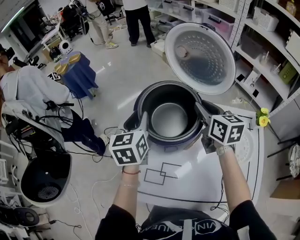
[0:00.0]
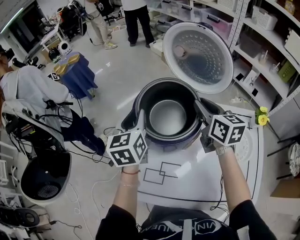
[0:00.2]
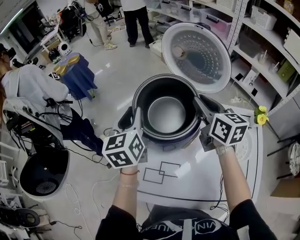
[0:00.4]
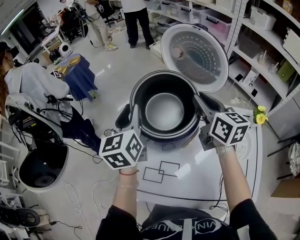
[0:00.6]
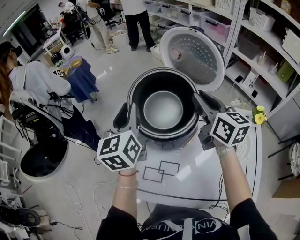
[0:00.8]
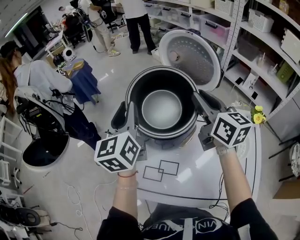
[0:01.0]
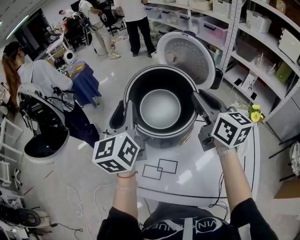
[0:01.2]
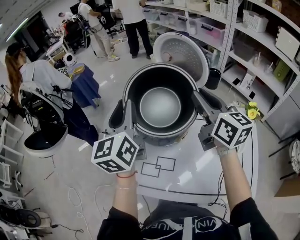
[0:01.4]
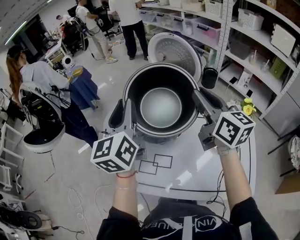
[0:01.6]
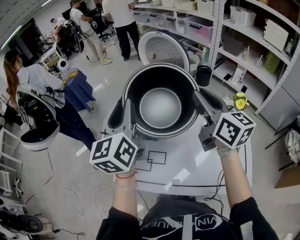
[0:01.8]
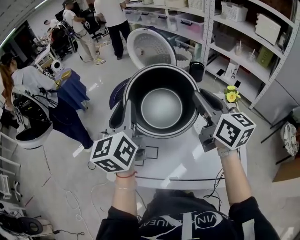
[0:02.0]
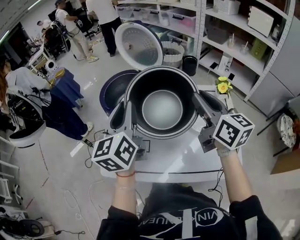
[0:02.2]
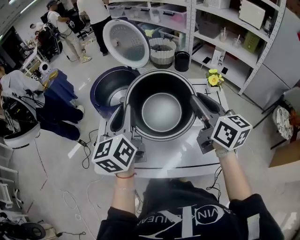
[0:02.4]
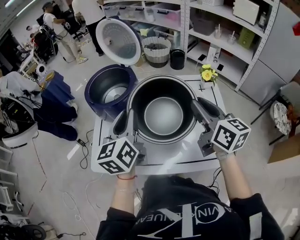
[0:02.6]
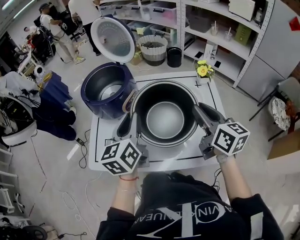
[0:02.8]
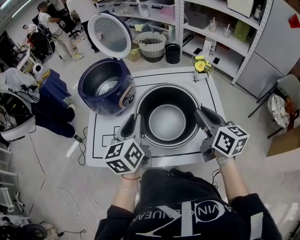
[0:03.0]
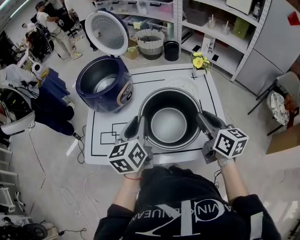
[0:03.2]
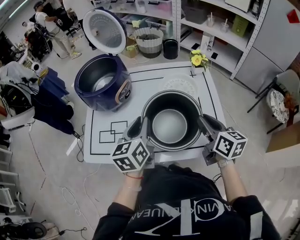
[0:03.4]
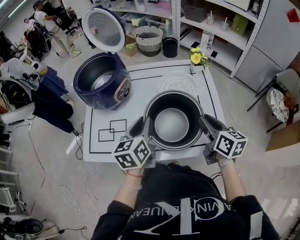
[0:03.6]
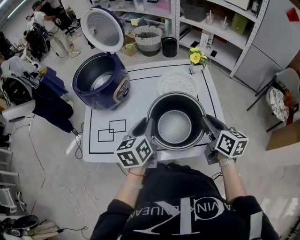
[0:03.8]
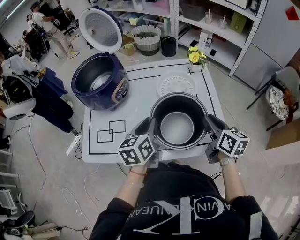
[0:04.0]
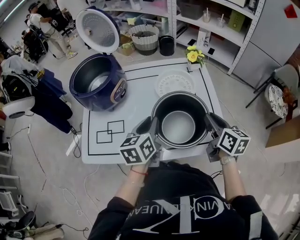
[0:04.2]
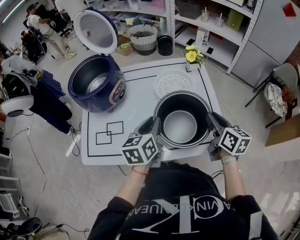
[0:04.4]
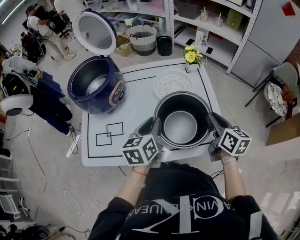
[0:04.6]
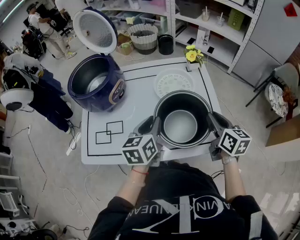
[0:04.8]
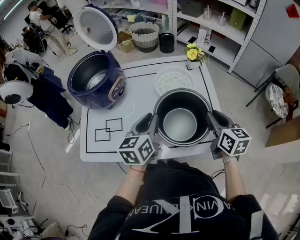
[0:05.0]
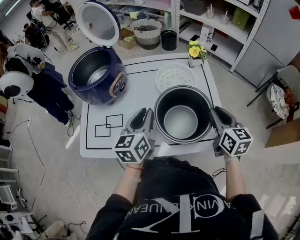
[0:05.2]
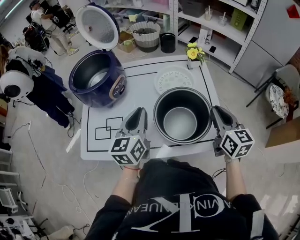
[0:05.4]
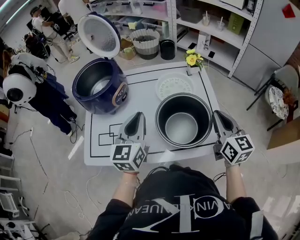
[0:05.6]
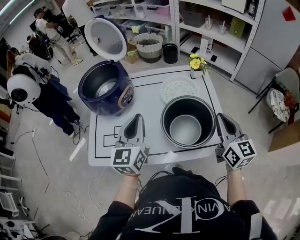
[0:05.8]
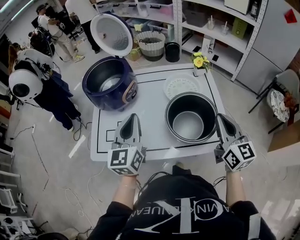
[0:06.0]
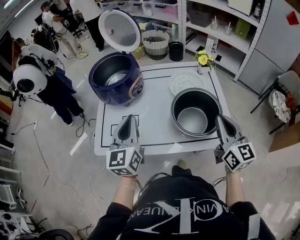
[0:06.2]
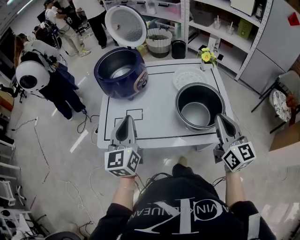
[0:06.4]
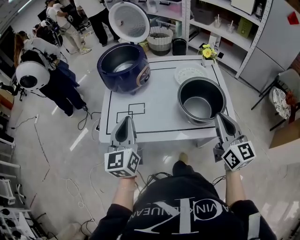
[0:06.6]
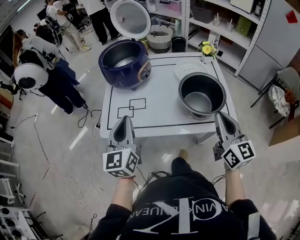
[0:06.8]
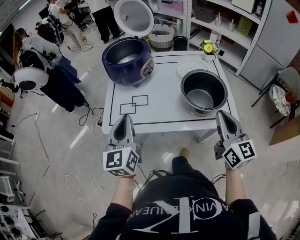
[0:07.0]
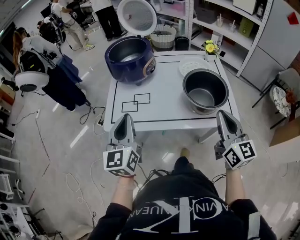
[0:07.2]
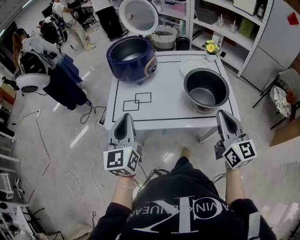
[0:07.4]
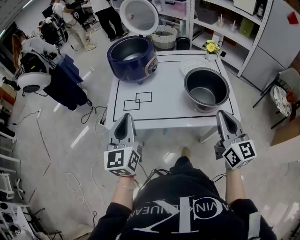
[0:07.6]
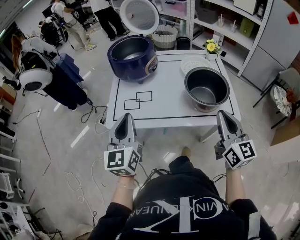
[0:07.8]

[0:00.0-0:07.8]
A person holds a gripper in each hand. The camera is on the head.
0:00.0 to 0:01.6: The grippers both shift upward and backward by approximately 20 cm. The left gripper rotates roughly 20 degrees, while the right gripper changes its angle by roughly 20 degrees.
0:01.6 to 0:03.2: The left gripper moves to the right, downward and backward, roughly 35 cm, and changes its angle by approximately 30 degrees, while the right gripper heads backward, to the right and downward, covering some 40 cm, and turns by roughly 20 degrees.
0:03.2 to 0:04.6: The grippers both shift to the right and downward by roughly 10 cm.
0:04.6 to 0:06.2: The right gripper is displaced upward, backward and to the left by approximately 15 cm, and swivels roughly 30 degrees. The left gripper shifts some 20 cm to the left, upward and backward, and rotates approximately 30 degrees.
0:06.2 to 0:07.8: Both grippers move backward and to the left, roughly 15 cm.

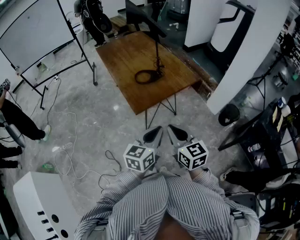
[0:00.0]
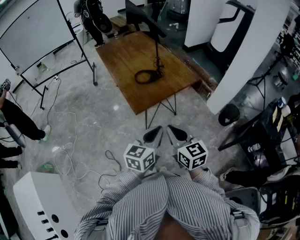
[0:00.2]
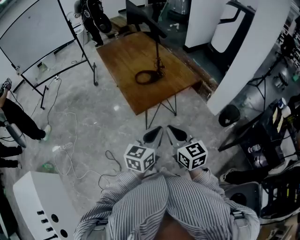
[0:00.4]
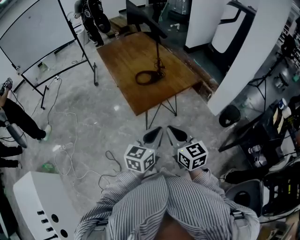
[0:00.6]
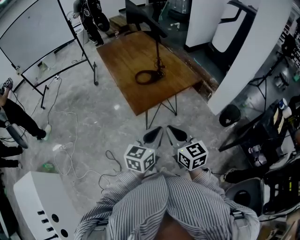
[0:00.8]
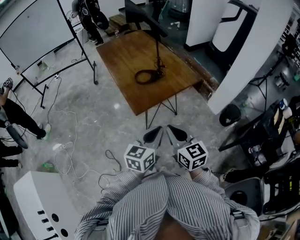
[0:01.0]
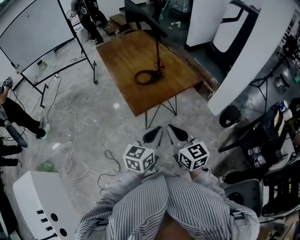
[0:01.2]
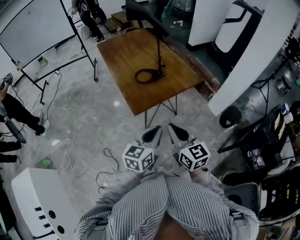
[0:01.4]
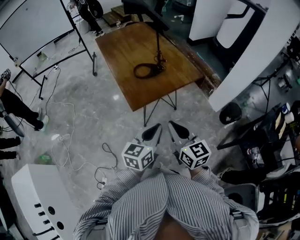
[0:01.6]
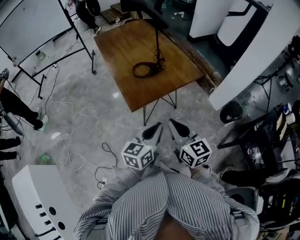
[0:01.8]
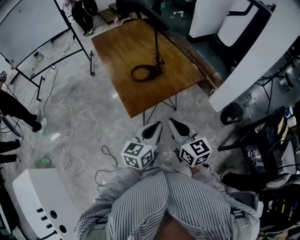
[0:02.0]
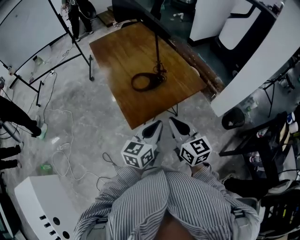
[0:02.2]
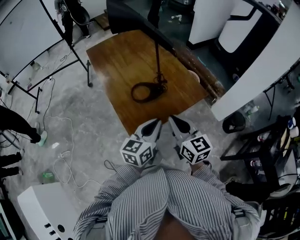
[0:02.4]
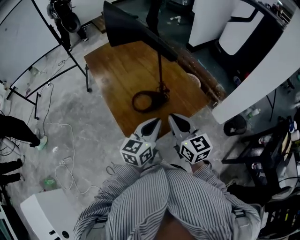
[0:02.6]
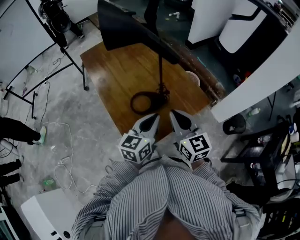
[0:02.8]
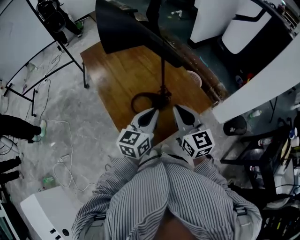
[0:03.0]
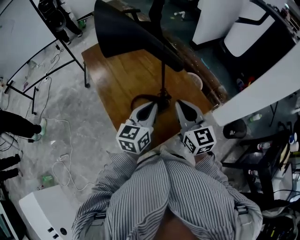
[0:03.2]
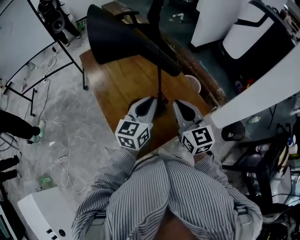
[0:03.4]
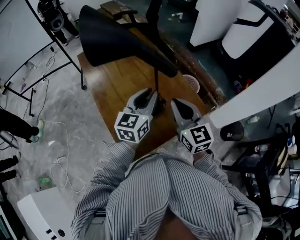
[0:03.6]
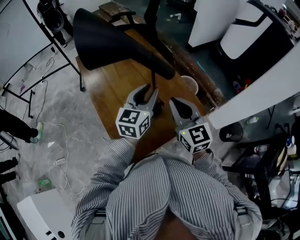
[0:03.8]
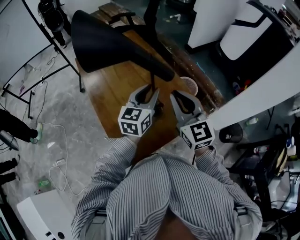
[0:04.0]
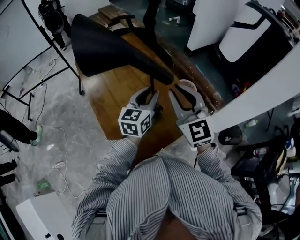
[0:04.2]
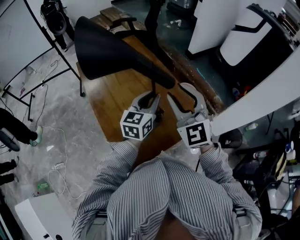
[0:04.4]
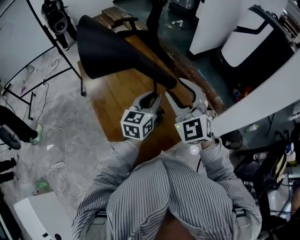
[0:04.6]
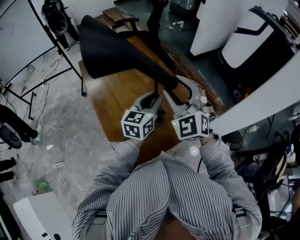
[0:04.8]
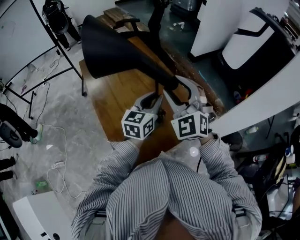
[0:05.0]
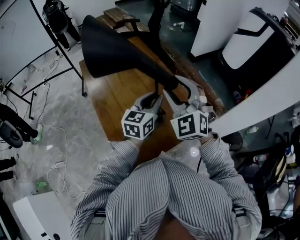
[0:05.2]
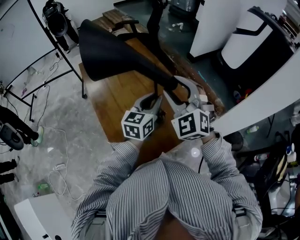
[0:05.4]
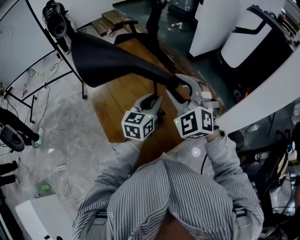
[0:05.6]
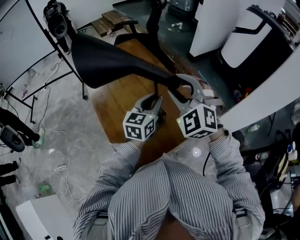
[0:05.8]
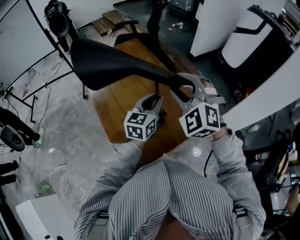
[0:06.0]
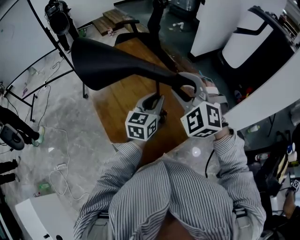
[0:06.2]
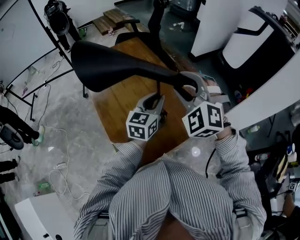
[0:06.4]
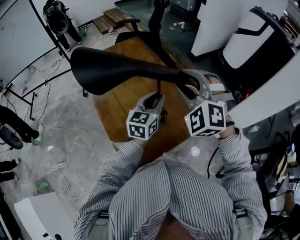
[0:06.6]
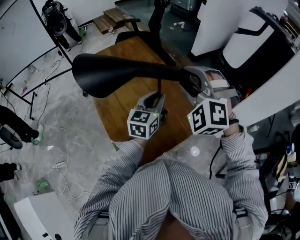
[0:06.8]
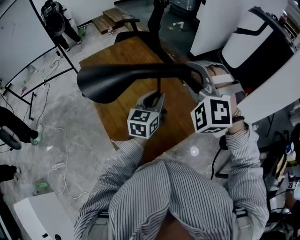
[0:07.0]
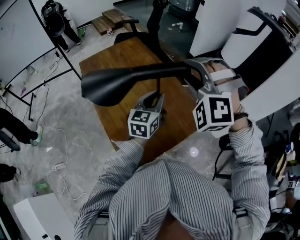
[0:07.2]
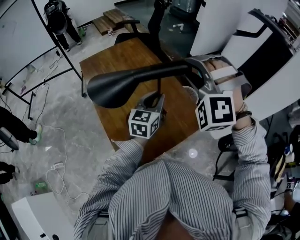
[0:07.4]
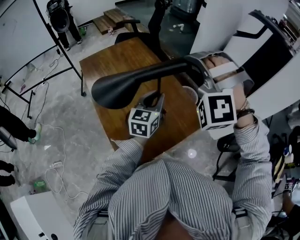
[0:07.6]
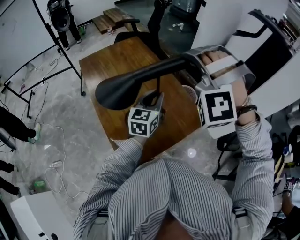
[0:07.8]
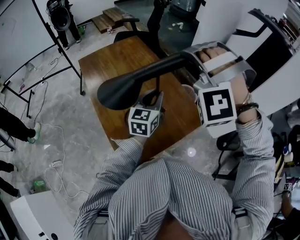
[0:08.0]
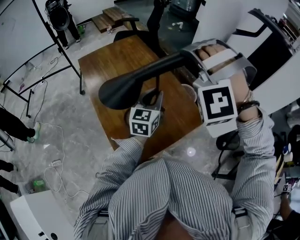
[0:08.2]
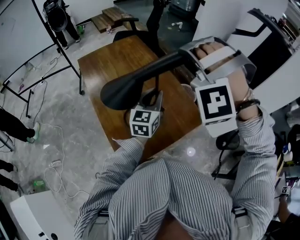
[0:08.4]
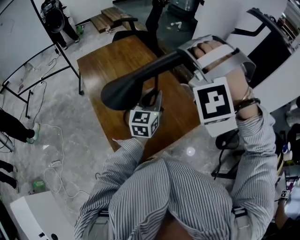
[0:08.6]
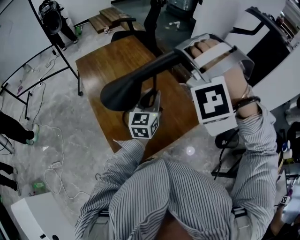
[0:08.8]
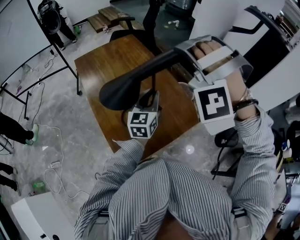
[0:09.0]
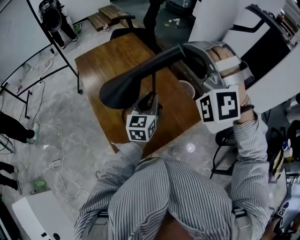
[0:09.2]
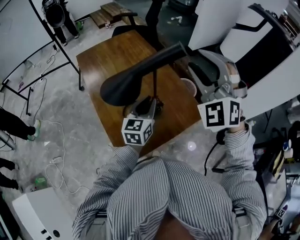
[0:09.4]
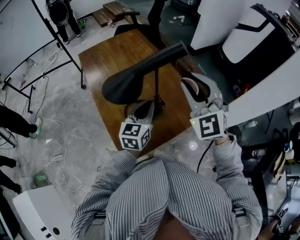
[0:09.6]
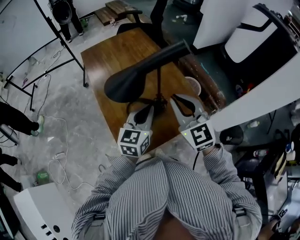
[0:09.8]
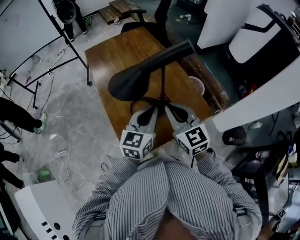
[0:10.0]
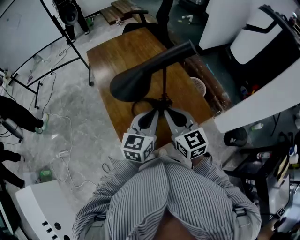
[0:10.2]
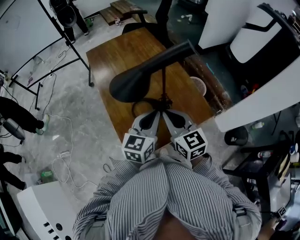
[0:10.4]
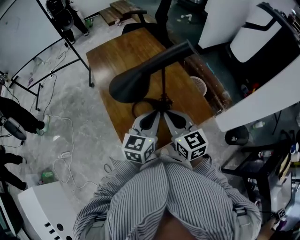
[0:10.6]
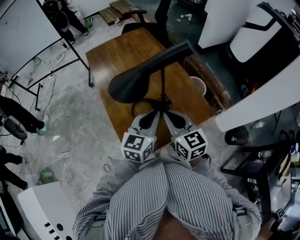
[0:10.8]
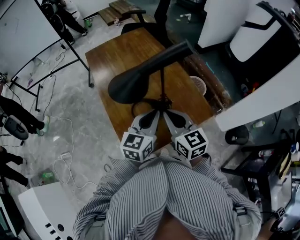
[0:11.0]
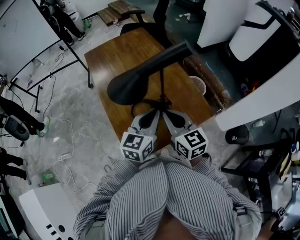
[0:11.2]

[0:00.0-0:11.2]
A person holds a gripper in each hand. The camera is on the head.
0:00.0 to 0:01.6: The grippers stay close to where they were, moving slightly.
0:01.6 to 0:03.2: The two grippers go some 40 cm forward.
0:03.2 to 0:04.8: The right gripper is displaced forward and upward by about 10 cm, twists roughly 50 degrees counterclockwise, seen from behind, and opens its fingers, while the left gripper is displaced forward by approximately 10 cm.
0:04.8 to 0:06.4: The right gripper swivels about 20 degrees.
0:06.4 to 0:08.0: The right gripper is displaced upward by roughly 5 cm, and twists approximately 40 degrees counterclockwise, seen from behind.
0:08.0 to 0:09.6: The left gripper shifts roughly 5 cm backward, while the right gripper moves downward, about 5 cm, and rotates around the line of its fingers by some 60 degrees, clockwise from behind.
0:09.6 to 0:11.2: The right gripper travels downward and to the left by about 15 cm, rolls clockwise, seen from behind, by approximately 50 degrees, and closes its fingers.

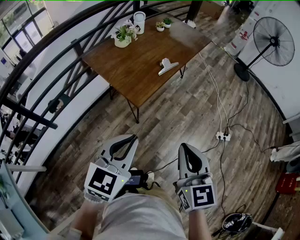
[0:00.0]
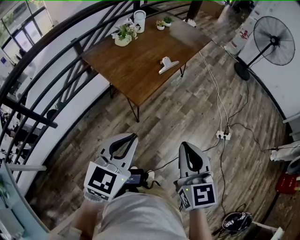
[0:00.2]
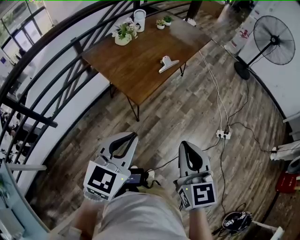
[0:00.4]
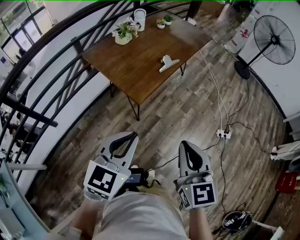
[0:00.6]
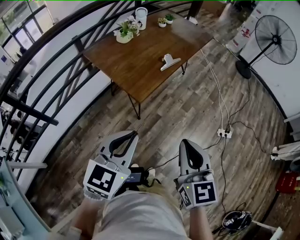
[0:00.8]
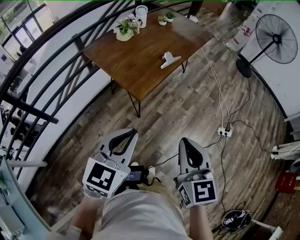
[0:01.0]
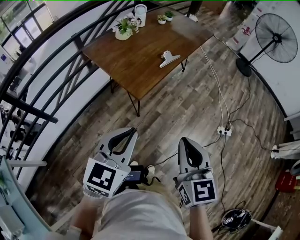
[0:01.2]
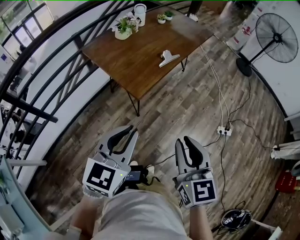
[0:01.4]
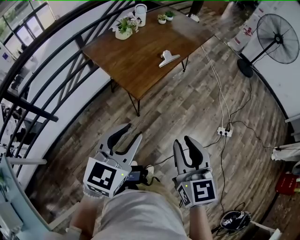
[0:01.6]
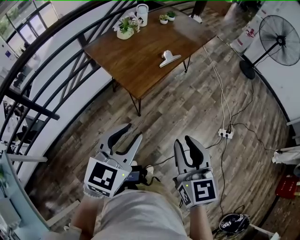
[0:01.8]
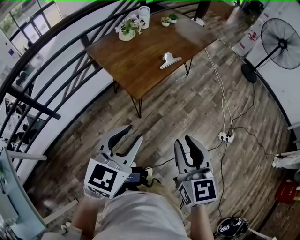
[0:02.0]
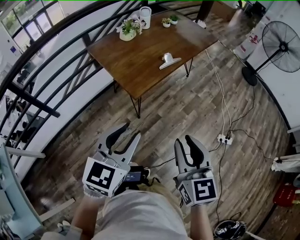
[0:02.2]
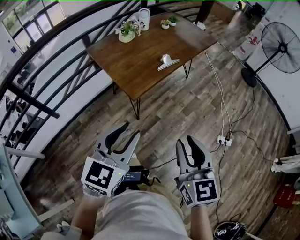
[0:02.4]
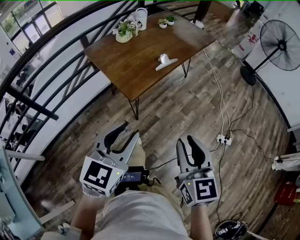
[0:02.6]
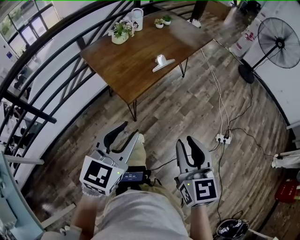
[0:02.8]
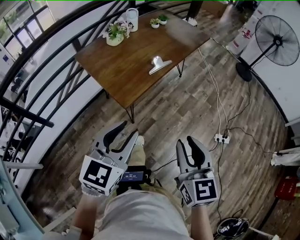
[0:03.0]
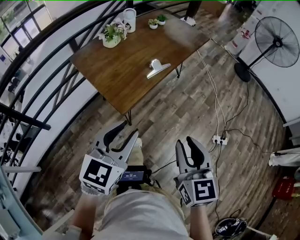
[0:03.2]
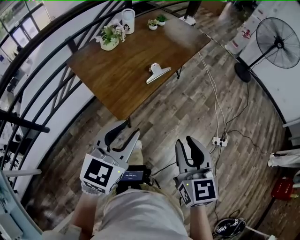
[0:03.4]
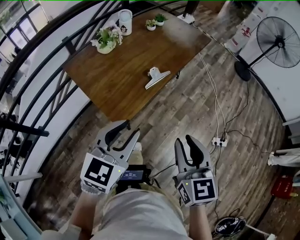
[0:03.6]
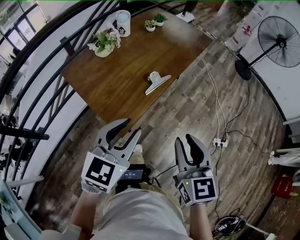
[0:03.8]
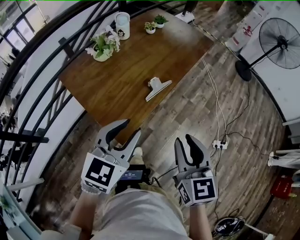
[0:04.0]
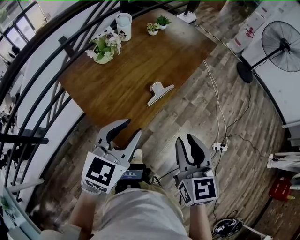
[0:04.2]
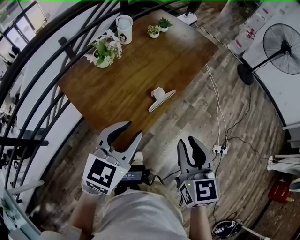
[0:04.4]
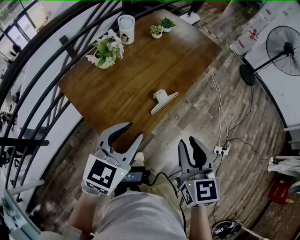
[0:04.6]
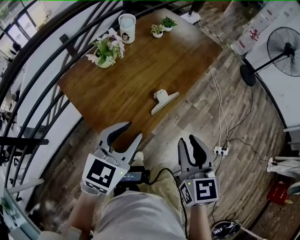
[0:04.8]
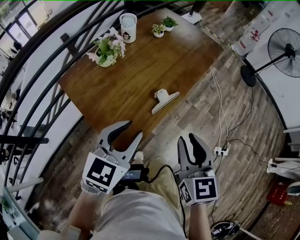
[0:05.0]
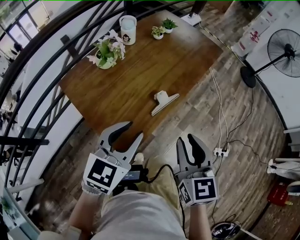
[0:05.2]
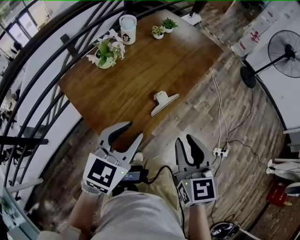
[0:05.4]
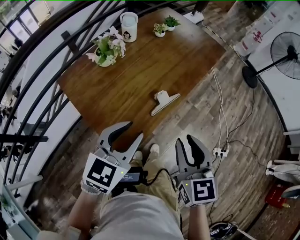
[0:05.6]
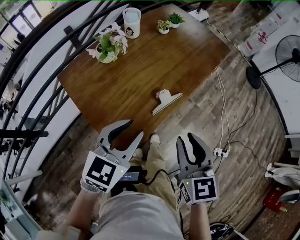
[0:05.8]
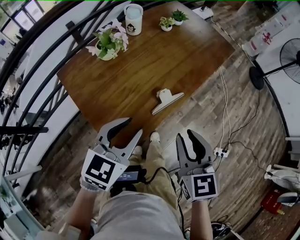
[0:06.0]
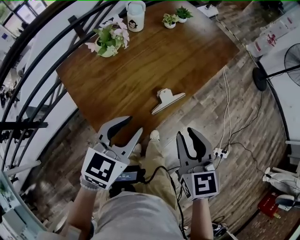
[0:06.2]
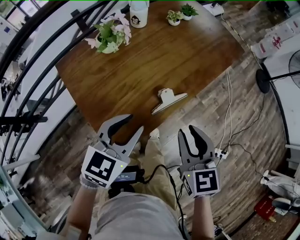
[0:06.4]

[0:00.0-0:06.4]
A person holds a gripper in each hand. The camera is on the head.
0:00.0 to 0:01.6: The right gripper opens, while the left gripper opens up.
0:01.6 to 0:03.2: The left gripper shifts roughly 10 cm forward; the right gripper shifts some 10 cm forward and to the right.
0:03.2 to 0:04.8: The two grippers go roughly 25 cm forward.
0:04.8 to 0:06.4: Both grippers move forward and downward, approximately 10 cm.
